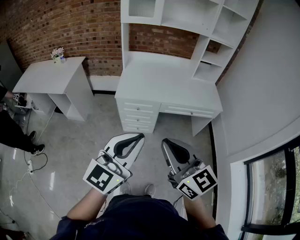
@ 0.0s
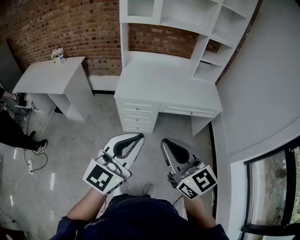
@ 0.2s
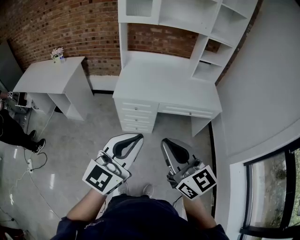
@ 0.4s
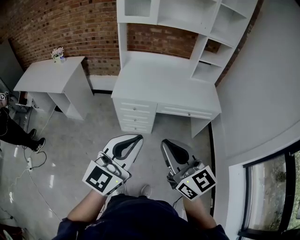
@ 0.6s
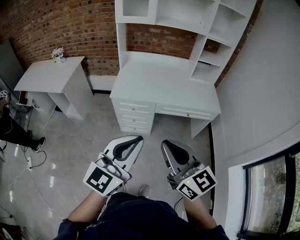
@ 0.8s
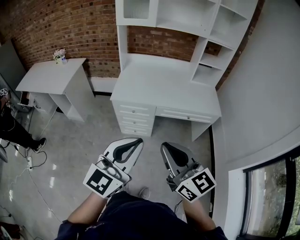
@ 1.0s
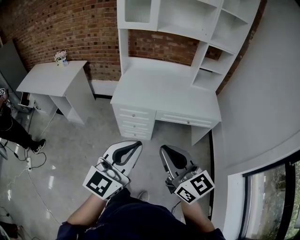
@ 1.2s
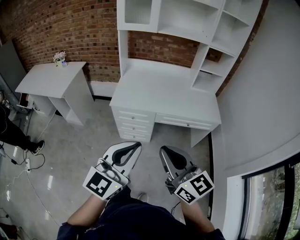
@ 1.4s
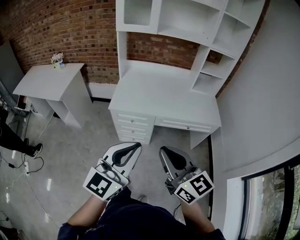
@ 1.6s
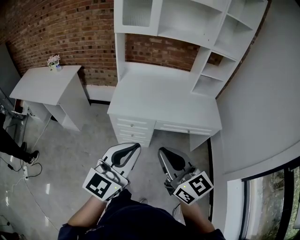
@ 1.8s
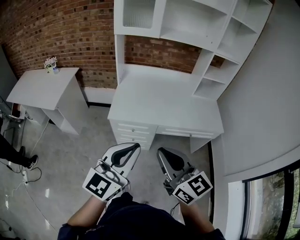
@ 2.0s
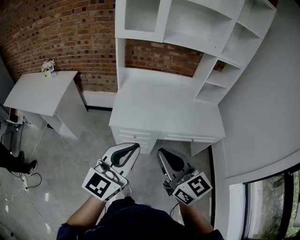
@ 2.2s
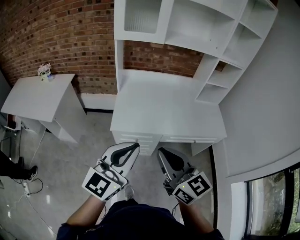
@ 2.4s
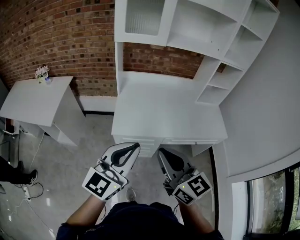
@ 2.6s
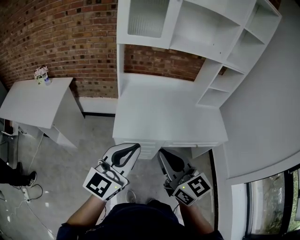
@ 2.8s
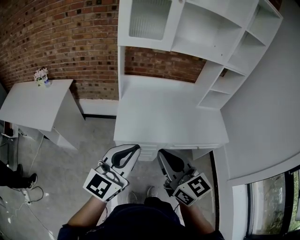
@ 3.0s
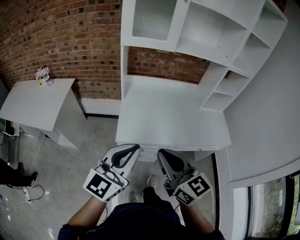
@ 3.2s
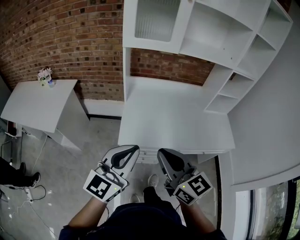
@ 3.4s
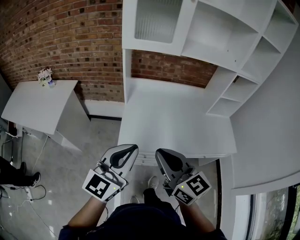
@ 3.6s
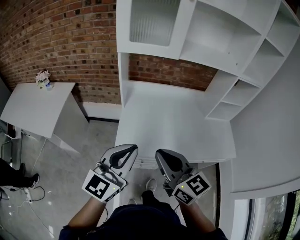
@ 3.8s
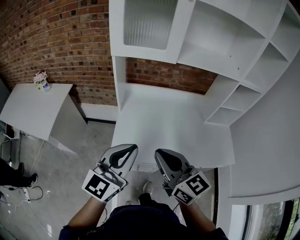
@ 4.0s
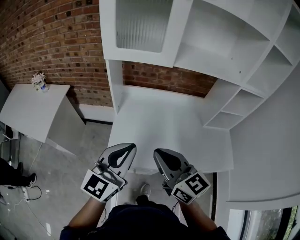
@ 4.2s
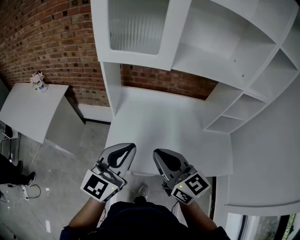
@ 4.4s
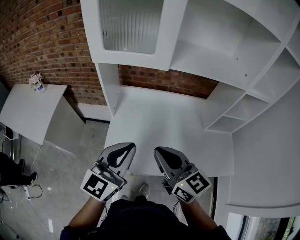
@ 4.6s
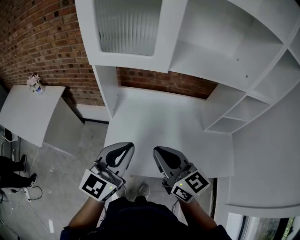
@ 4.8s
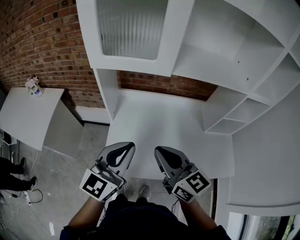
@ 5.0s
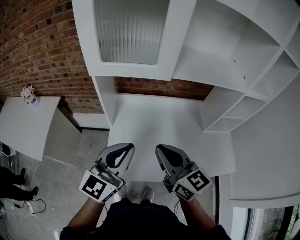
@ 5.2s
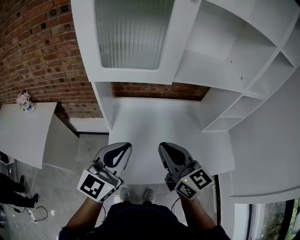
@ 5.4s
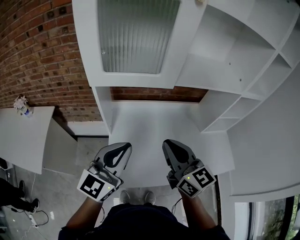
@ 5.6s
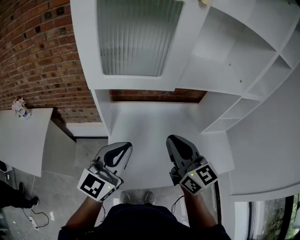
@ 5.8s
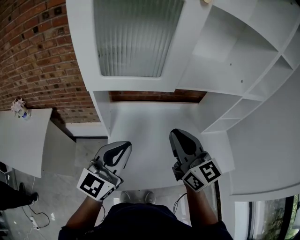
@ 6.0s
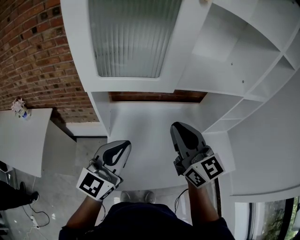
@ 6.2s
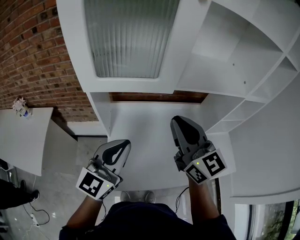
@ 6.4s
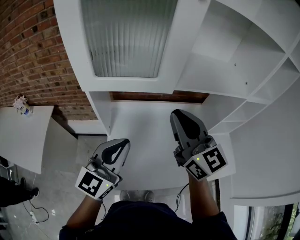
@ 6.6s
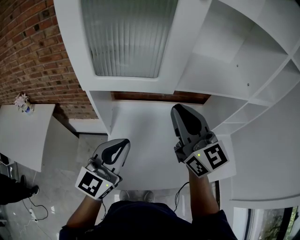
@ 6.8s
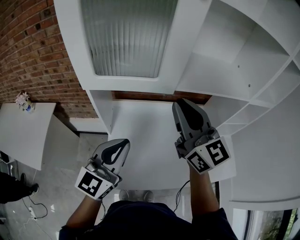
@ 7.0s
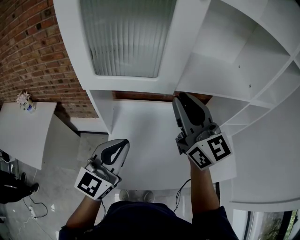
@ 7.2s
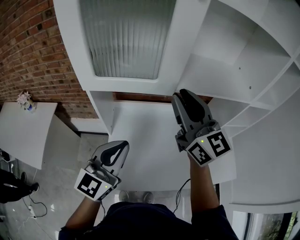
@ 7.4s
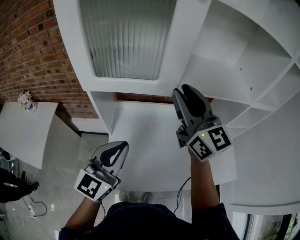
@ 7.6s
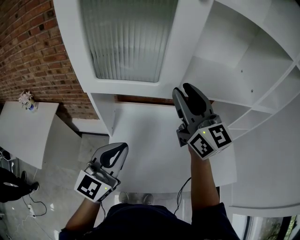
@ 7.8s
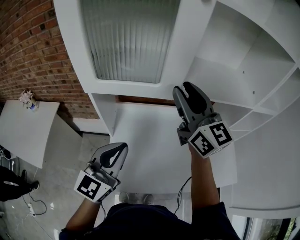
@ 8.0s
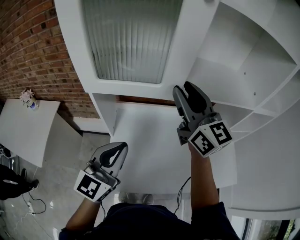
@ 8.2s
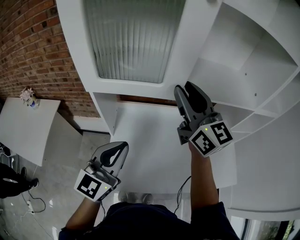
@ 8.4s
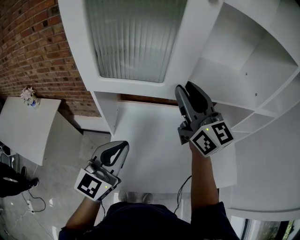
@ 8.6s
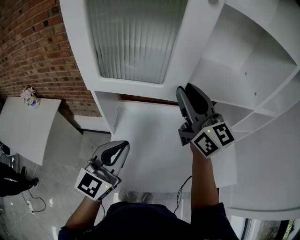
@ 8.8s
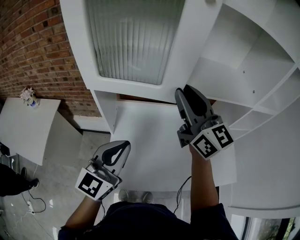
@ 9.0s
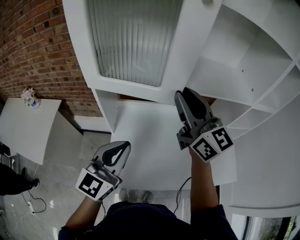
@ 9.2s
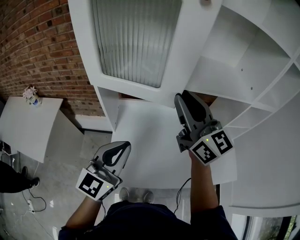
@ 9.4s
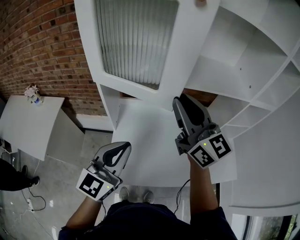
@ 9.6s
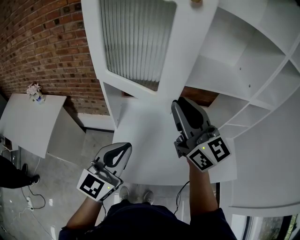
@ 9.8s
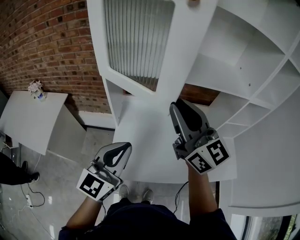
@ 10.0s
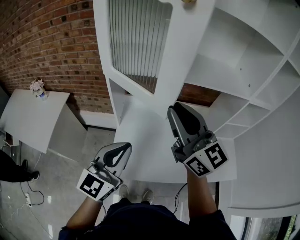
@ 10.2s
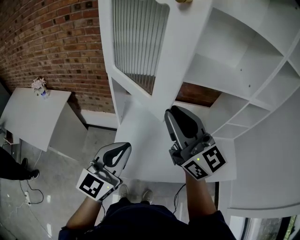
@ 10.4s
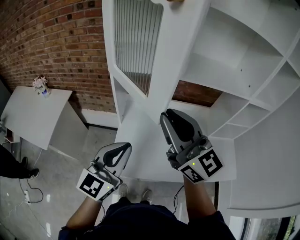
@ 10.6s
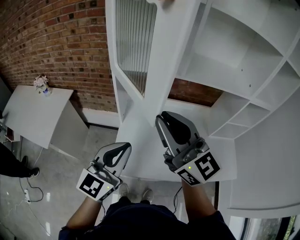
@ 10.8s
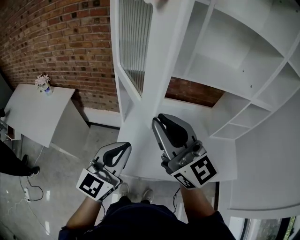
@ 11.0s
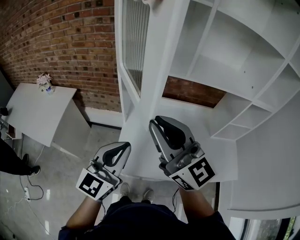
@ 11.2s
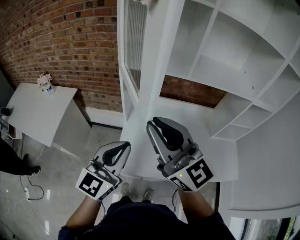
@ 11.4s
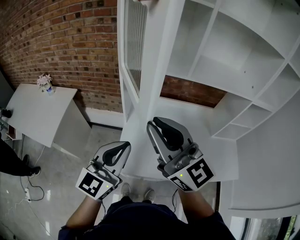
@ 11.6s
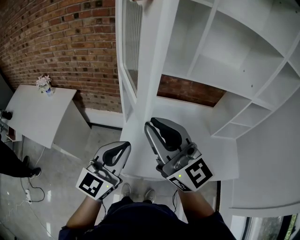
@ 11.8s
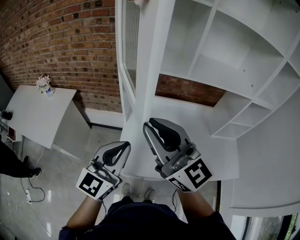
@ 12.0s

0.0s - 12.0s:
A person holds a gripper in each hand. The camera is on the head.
0.0s - 1.6s: The left gripper travels to the right and forward by roughly 10 cm. The right gripper travels forward and to the right by some 10 cm.
1.6s - 3.0s: The grippers both shift forward and to the left by roughly 30 cm.
3.0s - 4.4s: Both grippers move forward, roughly 25 cm.
4.4s - 6.0s: The left gripper is displaced forward and to the left by approximately 15 cm. Meanwhile the right gripper travels forward by some 15 cm, and changes its angle by about 20 degrees.
6.0s - 7.6s: The right gripper is displaced forward and upward by some 15 cm, and opens its fingers.
7.6s - 9.0s: There are only small adjustments of the grippers.
9.0s - 10.4s: The right gripper shifts roughly 15 cm backward; the left gripper moves backward, roughly 10 cm.
10.4s - 12.0s: The right gripper travels to the left and backward by about 10 cm.

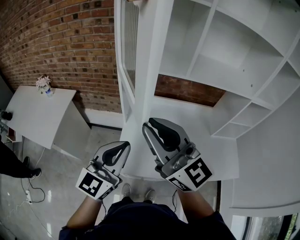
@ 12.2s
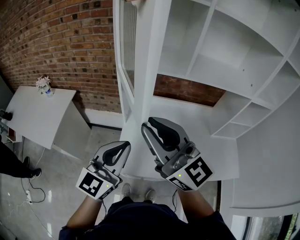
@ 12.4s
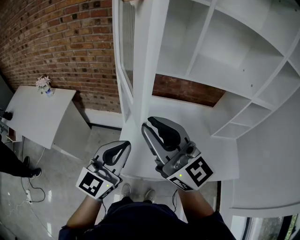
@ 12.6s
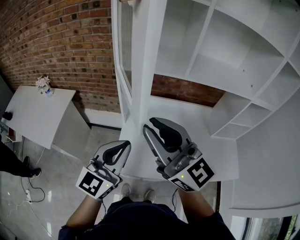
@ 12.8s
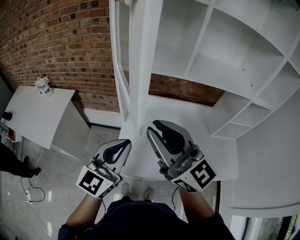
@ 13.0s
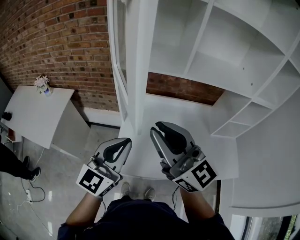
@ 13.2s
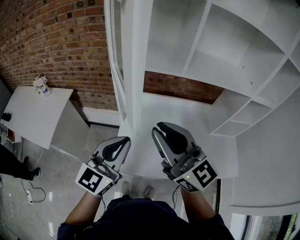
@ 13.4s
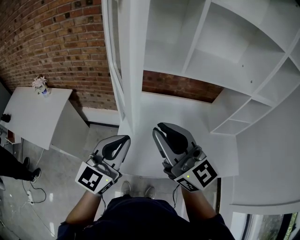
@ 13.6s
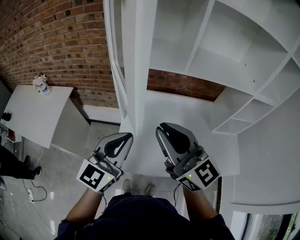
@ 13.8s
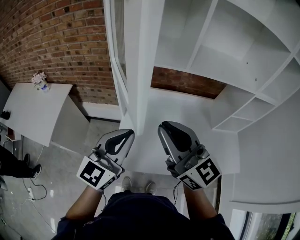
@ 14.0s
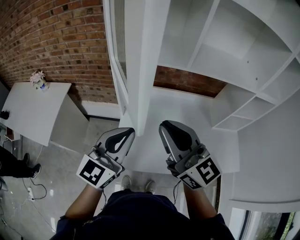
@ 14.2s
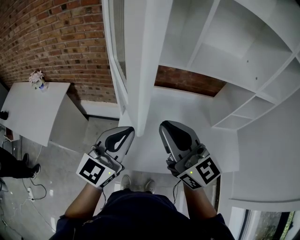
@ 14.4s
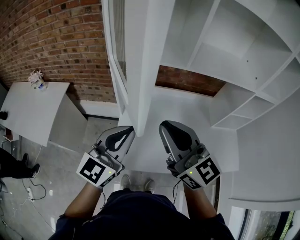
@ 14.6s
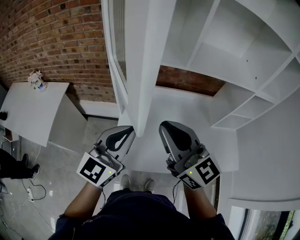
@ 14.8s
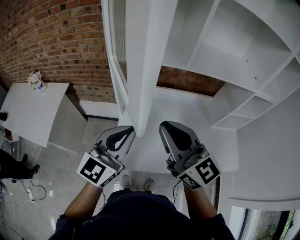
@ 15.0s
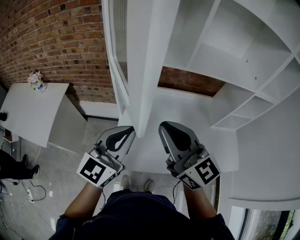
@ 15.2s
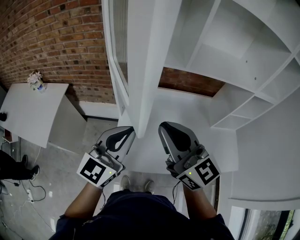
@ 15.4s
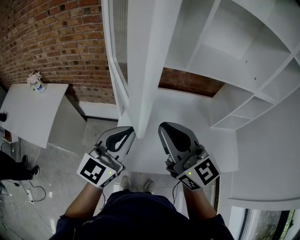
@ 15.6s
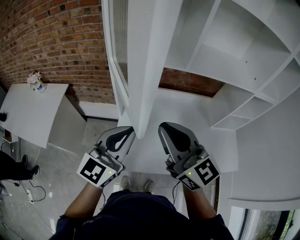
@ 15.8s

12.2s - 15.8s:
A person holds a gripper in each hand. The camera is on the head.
12.2s - 14.0s: The right gripper goes about 5 cm to the right.
14.0s - 15.8s: The grippers make only small movements.

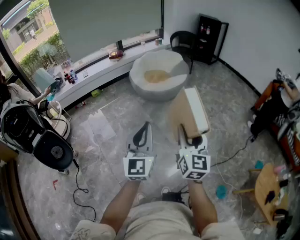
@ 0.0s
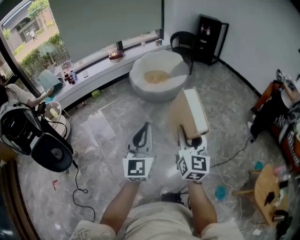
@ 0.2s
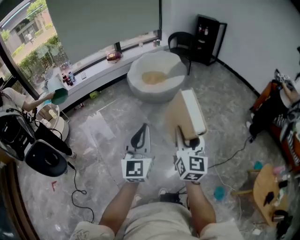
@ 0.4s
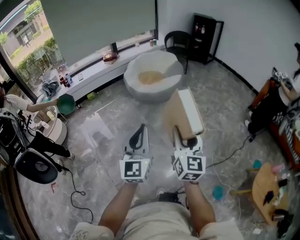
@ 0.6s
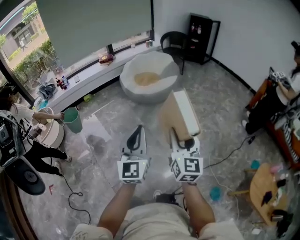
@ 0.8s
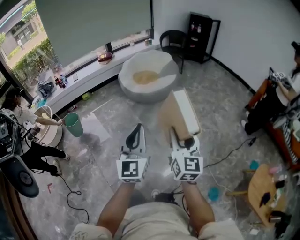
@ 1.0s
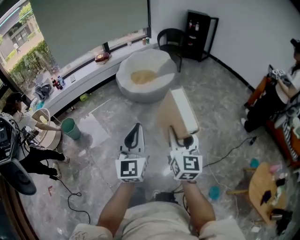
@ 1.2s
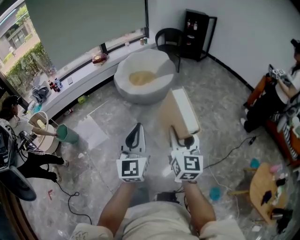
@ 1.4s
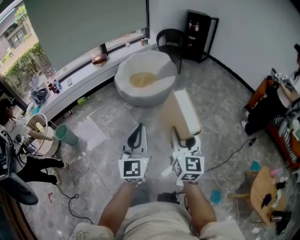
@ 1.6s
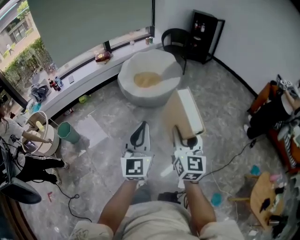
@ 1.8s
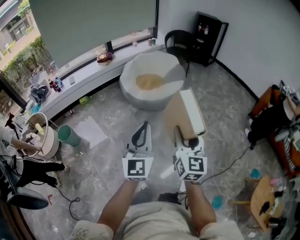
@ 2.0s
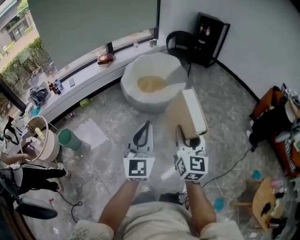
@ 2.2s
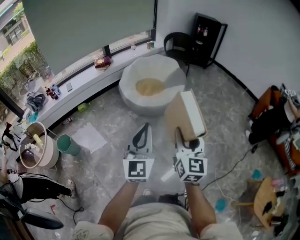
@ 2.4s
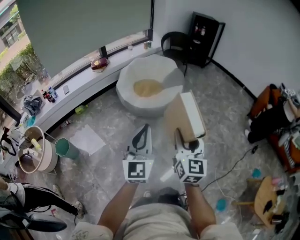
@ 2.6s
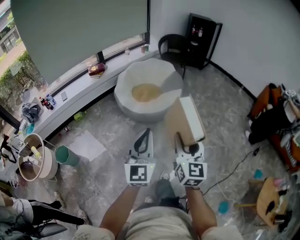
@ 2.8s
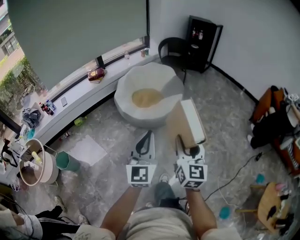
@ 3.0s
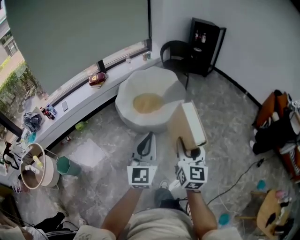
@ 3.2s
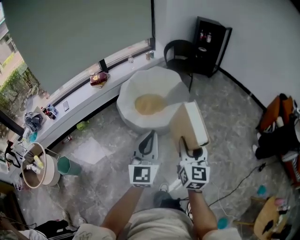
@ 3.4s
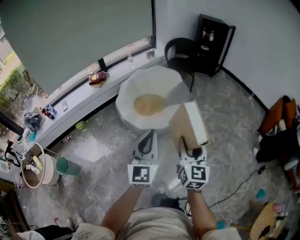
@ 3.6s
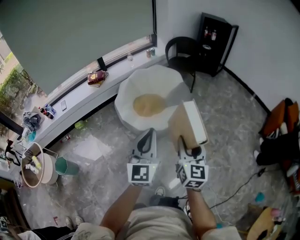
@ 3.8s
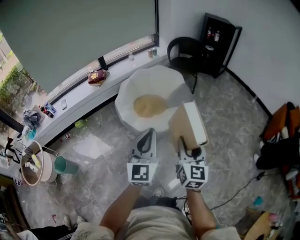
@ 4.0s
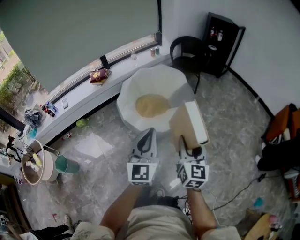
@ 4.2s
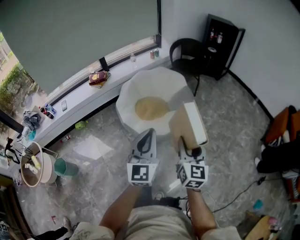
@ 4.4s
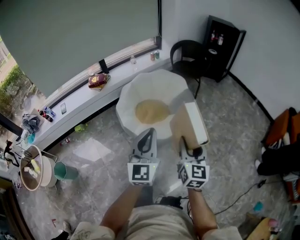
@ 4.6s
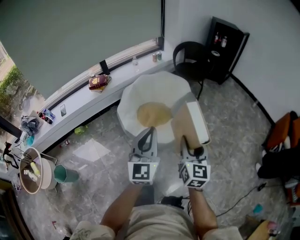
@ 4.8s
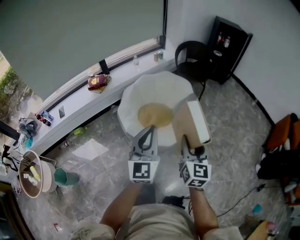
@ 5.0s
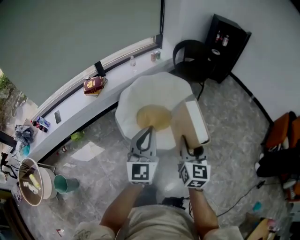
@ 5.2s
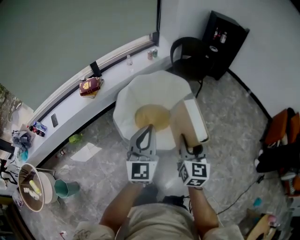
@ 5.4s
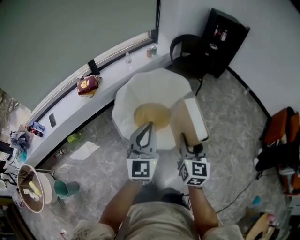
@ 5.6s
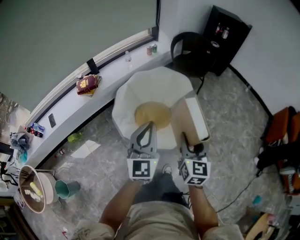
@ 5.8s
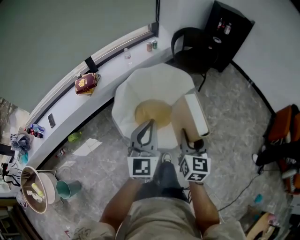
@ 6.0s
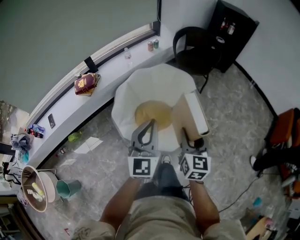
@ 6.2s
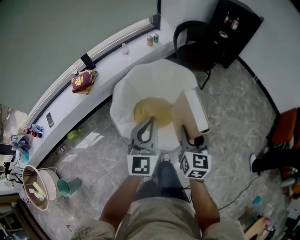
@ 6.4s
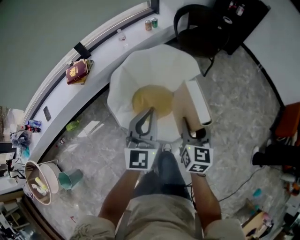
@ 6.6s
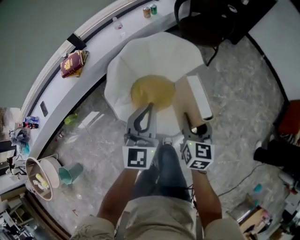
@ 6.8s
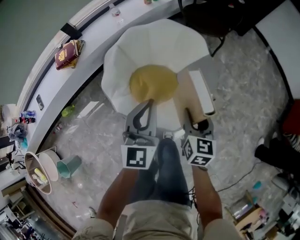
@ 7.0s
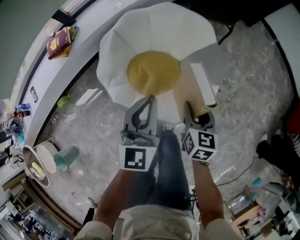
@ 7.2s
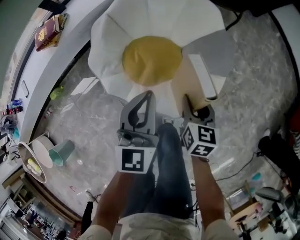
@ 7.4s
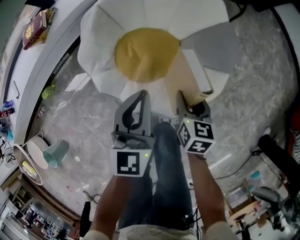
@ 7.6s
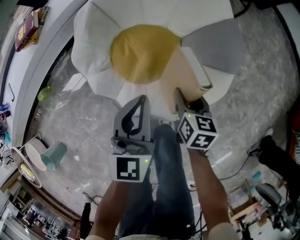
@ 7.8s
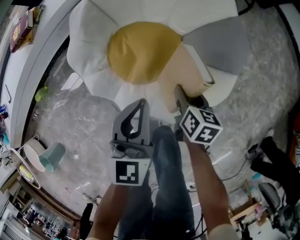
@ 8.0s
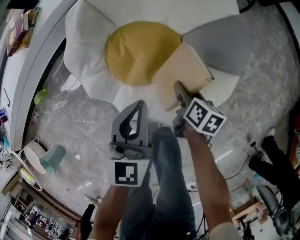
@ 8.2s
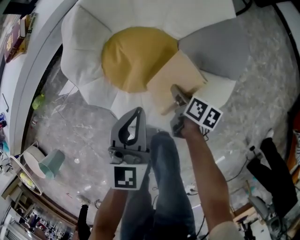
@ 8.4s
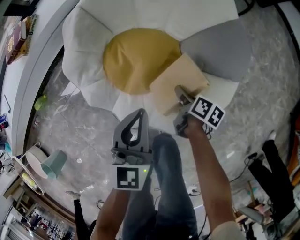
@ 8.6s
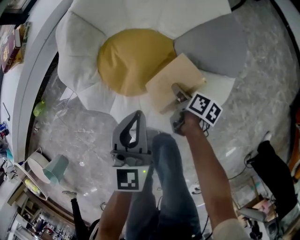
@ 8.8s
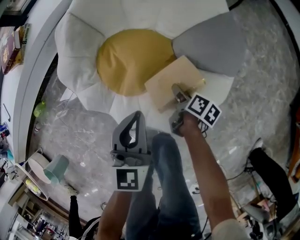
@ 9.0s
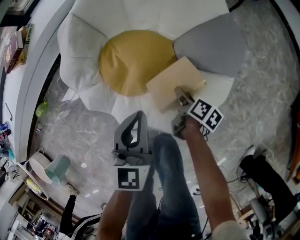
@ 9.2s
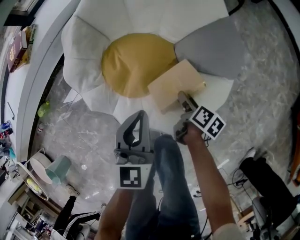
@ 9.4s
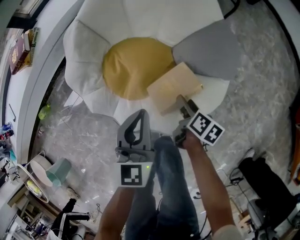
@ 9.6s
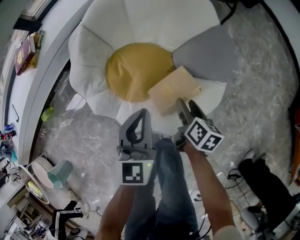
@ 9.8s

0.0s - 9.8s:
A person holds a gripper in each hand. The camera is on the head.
0.0s - 1.4s: The two grippers go roughly 10 cm forward and to the right.
1.4s - 2.8s: The grippers both shift forward and to the left by about 30 cm.
2.8s - 4.2s: Both grippers travel together forward, some 30 cm.
4.2s - 5.6s: The two grippers go some 30 cm forward and to the left.
5.6s - 7.0s: The left gripper moves forward and downward, about 30 cm, while the right gripper goes roughly 30 cm downward and forward.
7.0s - 8.4s: The two grippers go some 35 cm downward. The right gripper rotates about 50 degrees.
8.4s - 9.8s: The right gripper travels upward by about 10 cm.
